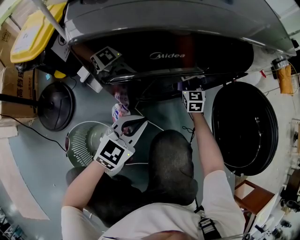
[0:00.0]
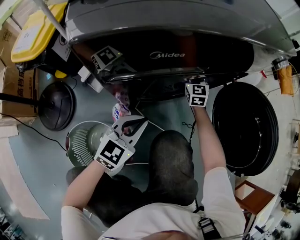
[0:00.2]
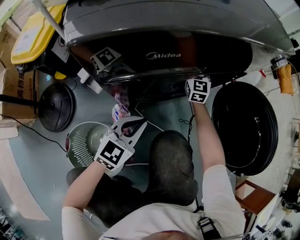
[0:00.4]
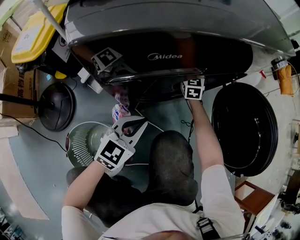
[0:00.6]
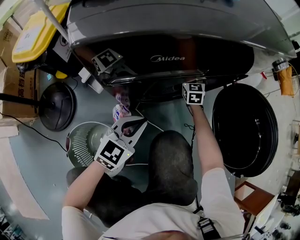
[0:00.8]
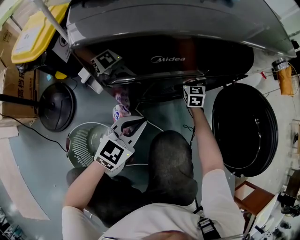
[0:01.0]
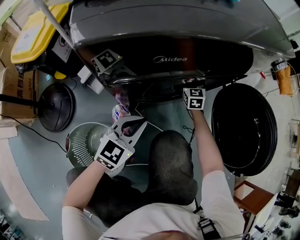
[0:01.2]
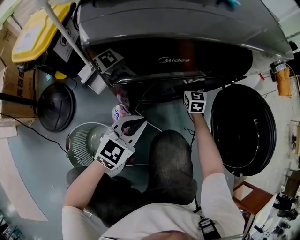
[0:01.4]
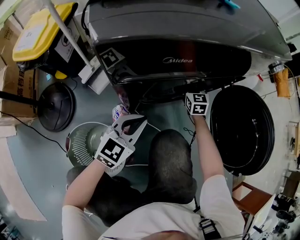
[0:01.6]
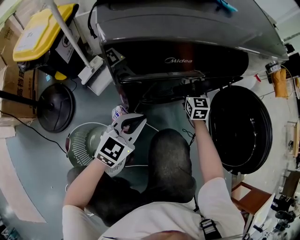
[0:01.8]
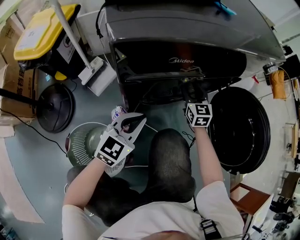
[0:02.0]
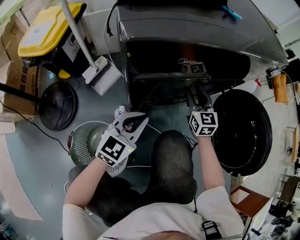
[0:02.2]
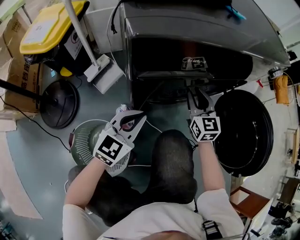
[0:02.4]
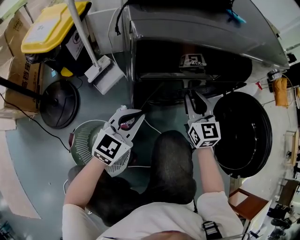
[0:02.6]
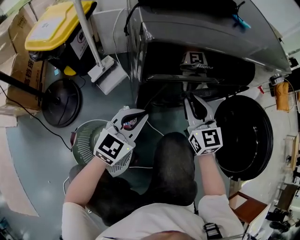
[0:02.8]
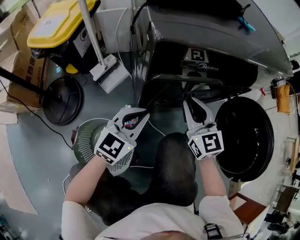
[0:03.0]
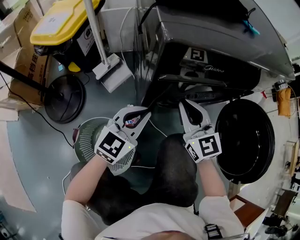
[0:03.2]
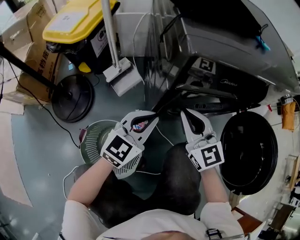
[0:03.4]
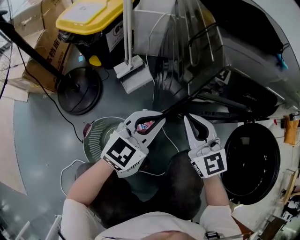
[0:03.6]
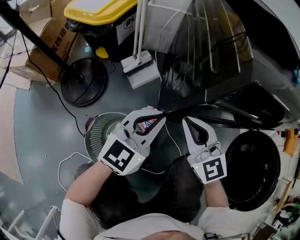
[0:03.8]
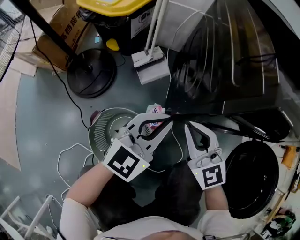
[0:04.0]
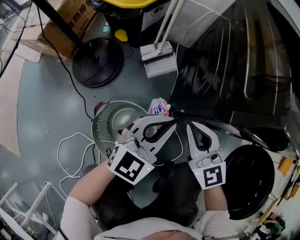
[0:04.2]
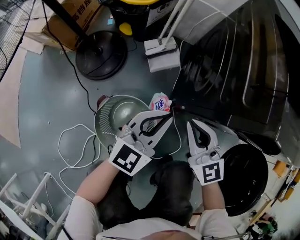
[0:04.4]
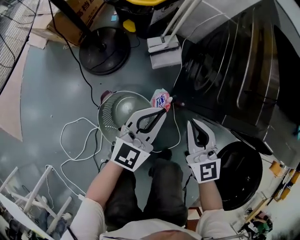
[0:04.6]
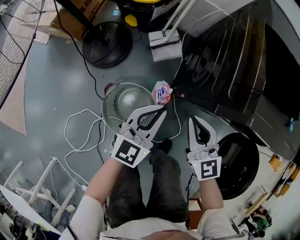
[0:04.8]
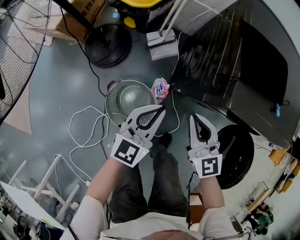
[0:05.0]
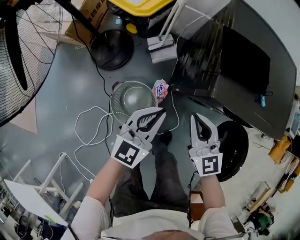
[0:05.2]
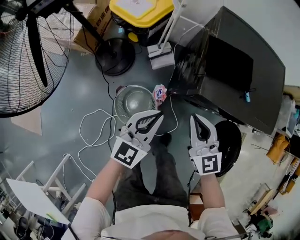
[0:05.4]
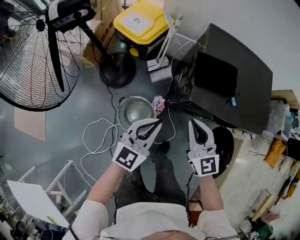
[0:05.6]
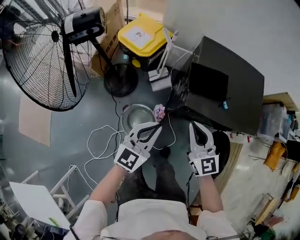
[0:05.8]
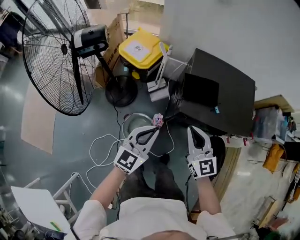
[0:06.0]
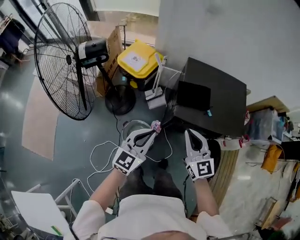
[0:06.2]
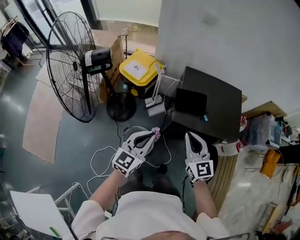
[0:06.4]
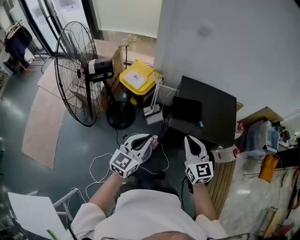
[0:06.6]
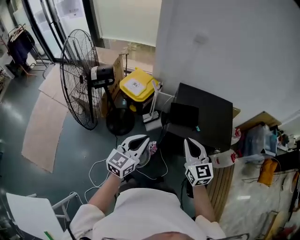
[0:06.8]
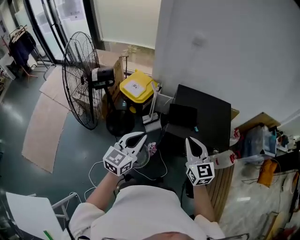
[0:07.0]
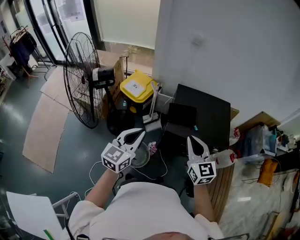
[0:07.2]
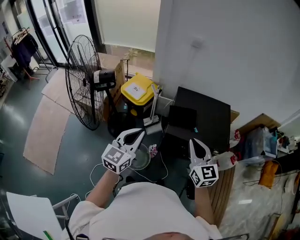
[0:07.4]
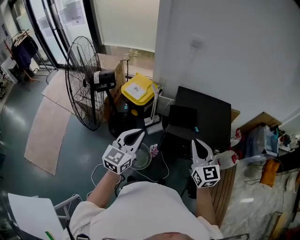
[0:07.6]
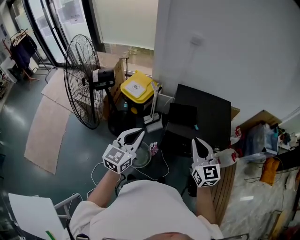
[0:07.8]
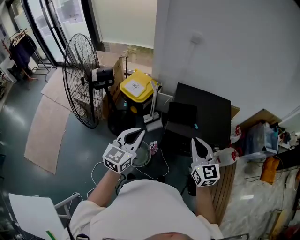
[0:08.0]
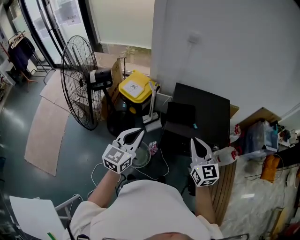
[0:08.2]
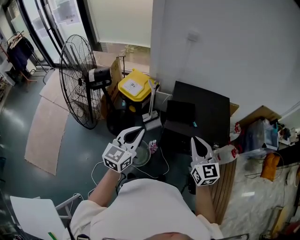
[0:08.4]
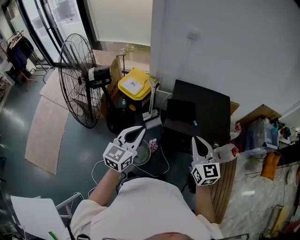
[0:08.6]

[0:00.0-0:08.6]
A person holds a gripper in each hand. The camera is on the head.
0:00.0 to 0:01.4: The right gripper goes upward and returns, roughly 10 cm each way, and opens its fingers.
0:01.4 to 0:02.8: The left gripper goes approximately 5 cm to the left; the right gripper travels upward, backward and to the left by some 25 cm, swivels roughly 20 degrees, and closes.
0:02.8 to 0:04.4: The right gripper changes place by roughly 25 cm, and rotates roughly 40 degrees, while the left gripper moves about 15 cm, and turns by about 30 degrees.
0:04.4 to 0:05.8: Both grippers move upward, approximately 40 cm.
0:05.8 to 0:07.2: Both grippers travel together upward, approximately 25 cm.
0:07.2 to 0:08.6: The grippers make only small movements.

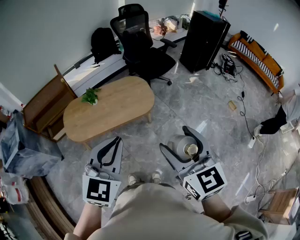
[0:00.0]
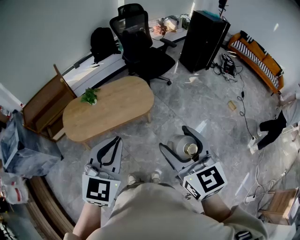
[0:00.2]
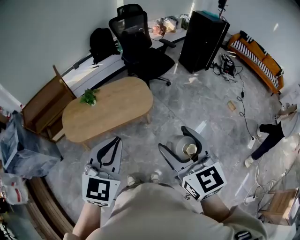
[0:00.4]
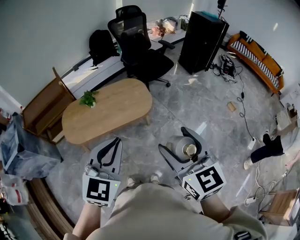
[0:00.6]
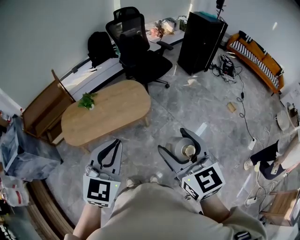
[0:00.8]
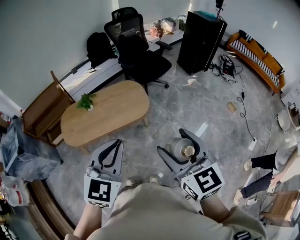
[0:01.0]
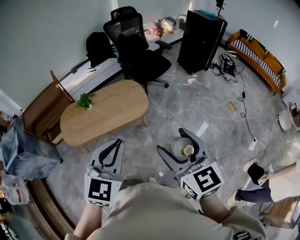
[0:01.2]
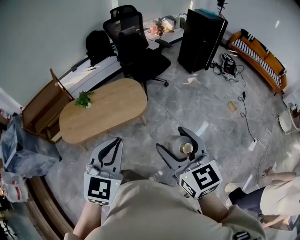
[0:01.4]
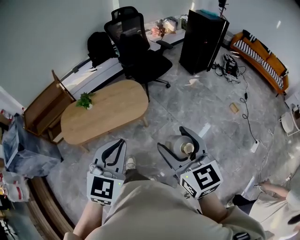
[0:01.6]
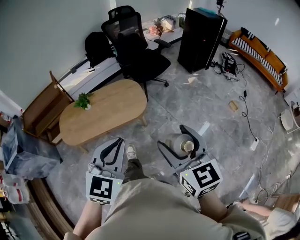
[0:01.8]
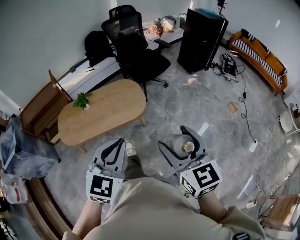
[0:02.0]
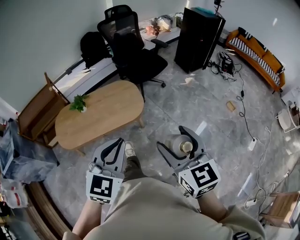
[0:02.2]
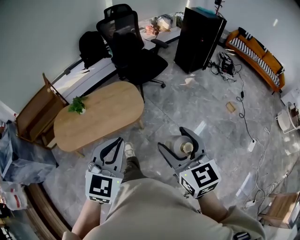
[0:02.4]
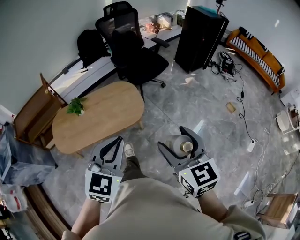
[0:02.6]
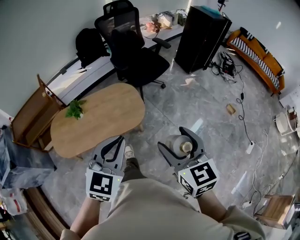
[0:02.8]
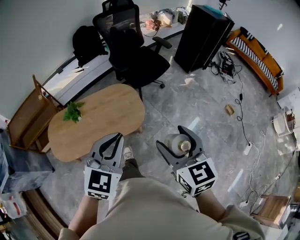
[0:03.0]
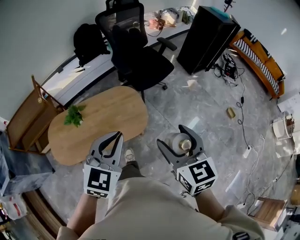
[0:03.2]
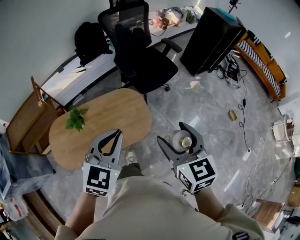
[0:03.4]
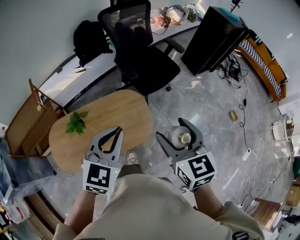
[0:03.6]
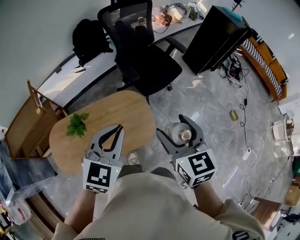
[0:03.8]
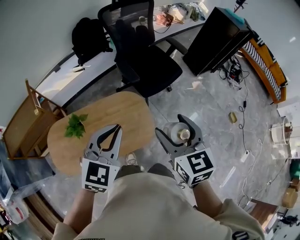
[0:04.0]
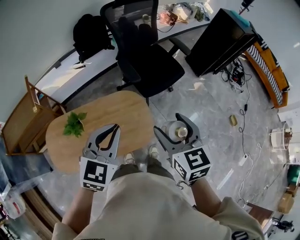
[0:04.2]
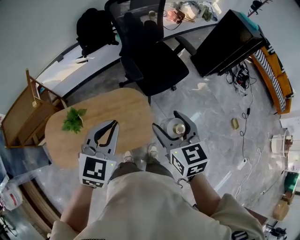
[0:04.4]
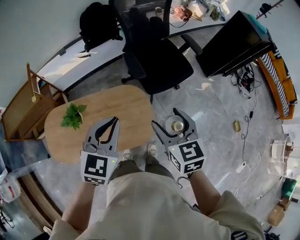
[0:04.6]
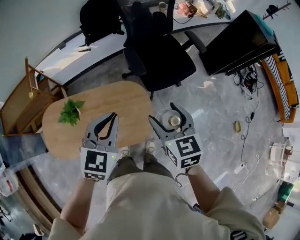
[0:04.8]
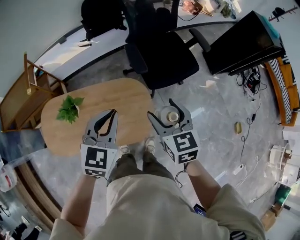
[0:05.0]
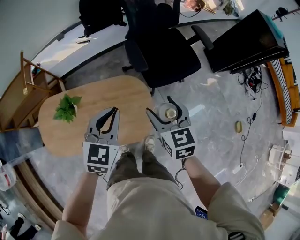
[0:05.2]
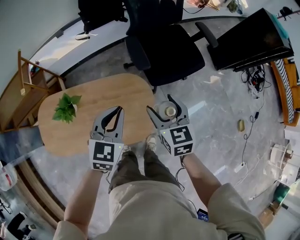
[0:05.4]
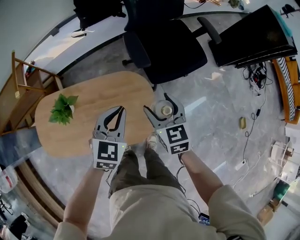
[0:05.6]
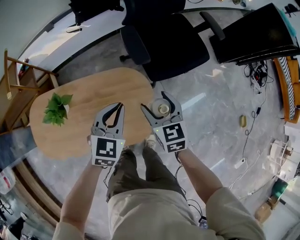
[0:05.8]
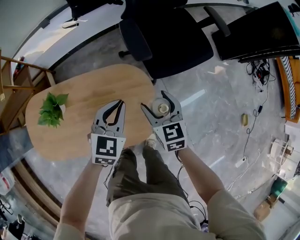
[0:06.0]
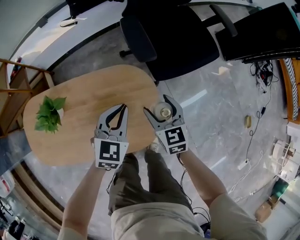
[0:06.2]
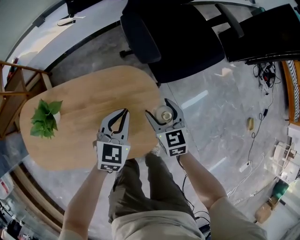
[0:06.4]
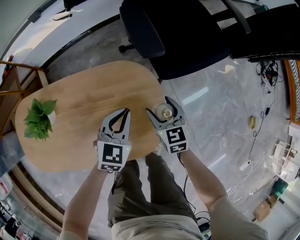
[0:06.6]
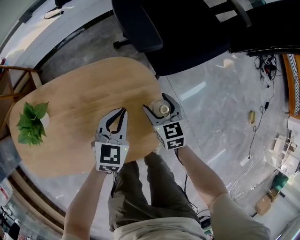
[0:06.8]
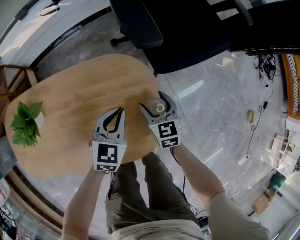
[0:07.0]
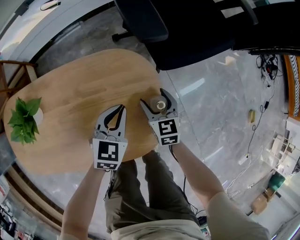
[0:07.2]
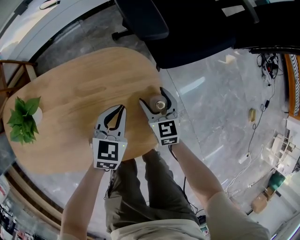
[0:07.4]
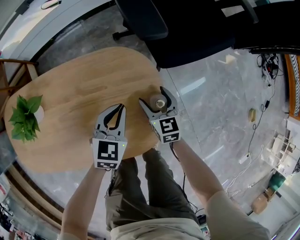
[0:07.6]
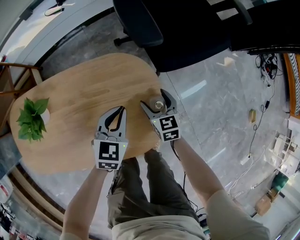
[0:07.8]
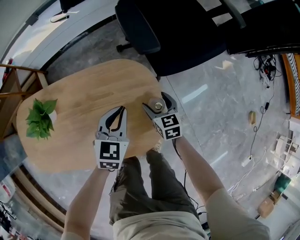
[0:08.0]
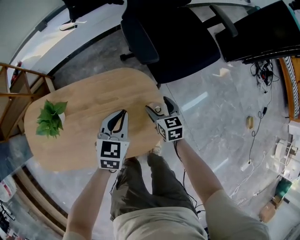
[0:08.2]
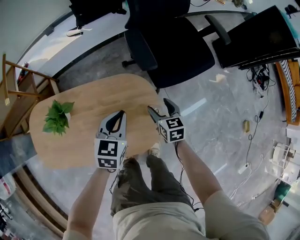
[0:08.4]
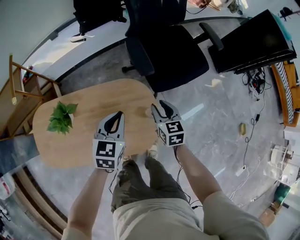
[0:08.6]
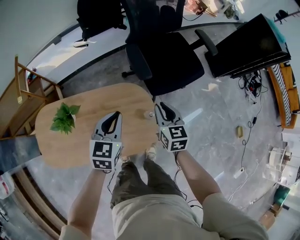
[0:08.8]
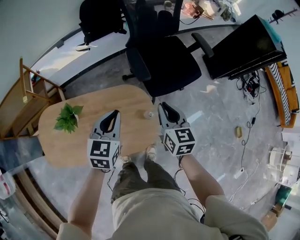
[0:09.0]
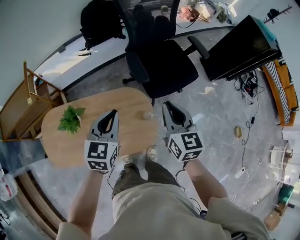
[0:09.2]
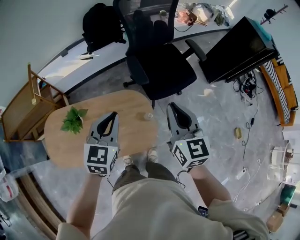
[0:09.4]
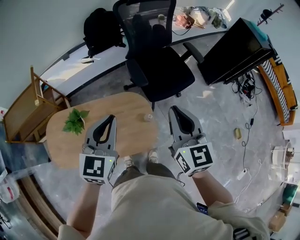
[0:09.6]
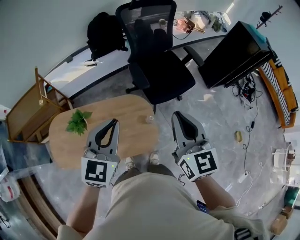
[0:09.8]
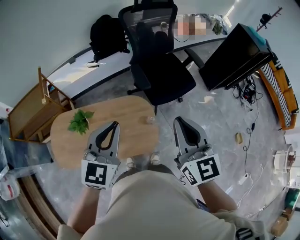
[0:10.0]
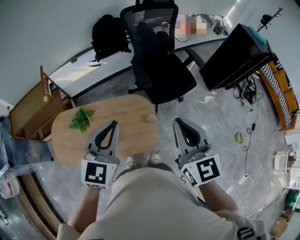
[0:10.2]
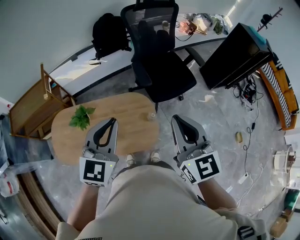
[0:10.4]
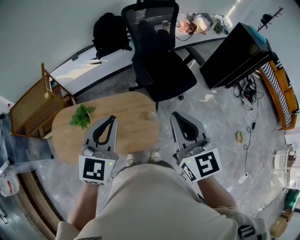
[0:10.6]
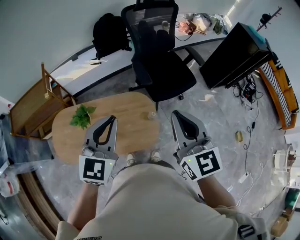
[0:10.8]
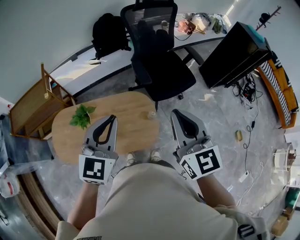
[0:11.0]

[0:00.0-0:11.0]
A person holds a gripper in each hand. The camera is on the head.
0:00.0 to 0:01.6: The two grippers go about 10 cm to the right.
0:01.6 to 0:03.2: Both grippers move forward, approximately 30 cm.
0:03.2 to 0:04.8: Both grippers travel together forward, approximately 30 cm.
0:04.8 to 0:06.2: The grippers both shift downward by about 35 cm.
0:06.2 to 0:07.8: Both grippers move downward, approximately 20 cm.
0:07.8 to 0:09.4: Both grippers travel together upward, roughly 50 cm. The right gripper changes its angle by about 30 degrees, and closes up.
0:09.4 to 0:11.0: The right gripper travels backward and upward by about 15 cm; the left gripper is displaced upward and backward by some 15 cm.

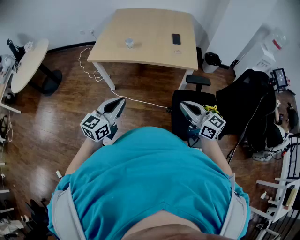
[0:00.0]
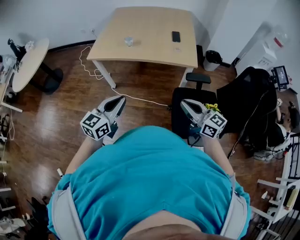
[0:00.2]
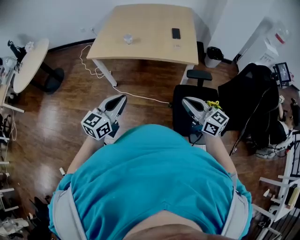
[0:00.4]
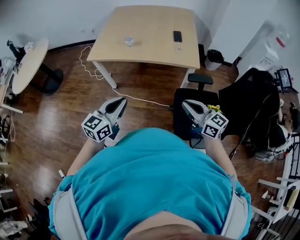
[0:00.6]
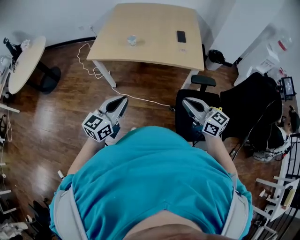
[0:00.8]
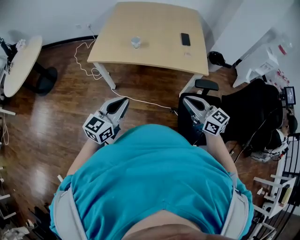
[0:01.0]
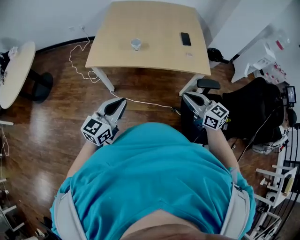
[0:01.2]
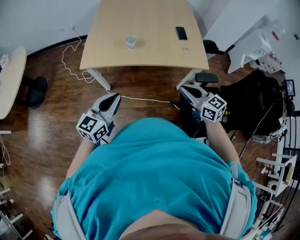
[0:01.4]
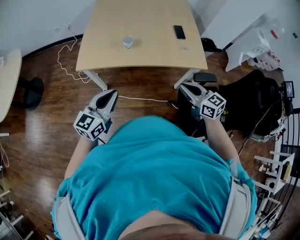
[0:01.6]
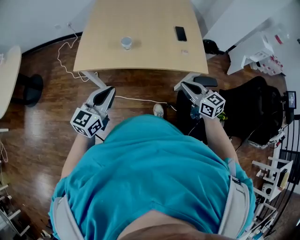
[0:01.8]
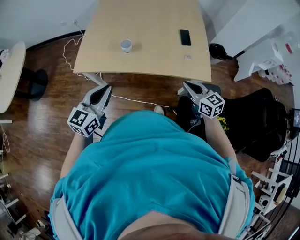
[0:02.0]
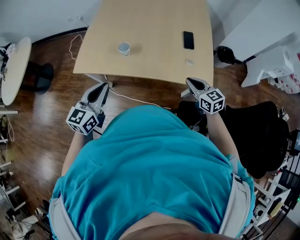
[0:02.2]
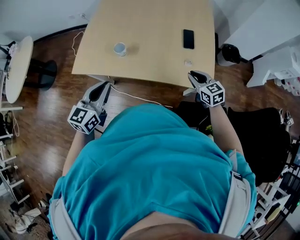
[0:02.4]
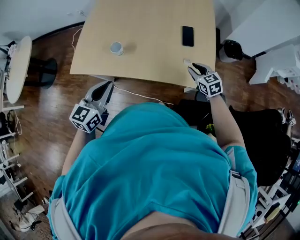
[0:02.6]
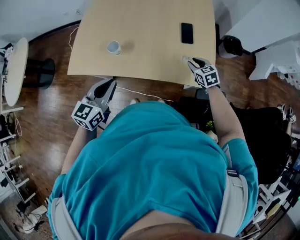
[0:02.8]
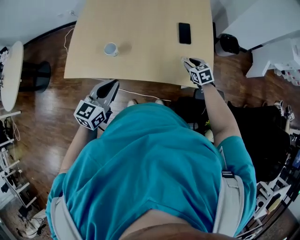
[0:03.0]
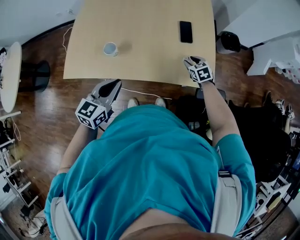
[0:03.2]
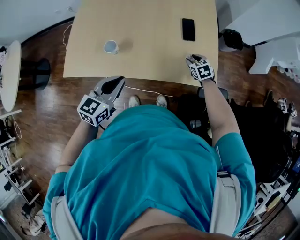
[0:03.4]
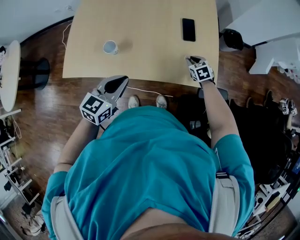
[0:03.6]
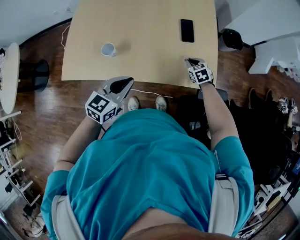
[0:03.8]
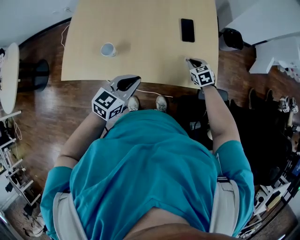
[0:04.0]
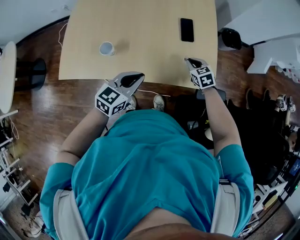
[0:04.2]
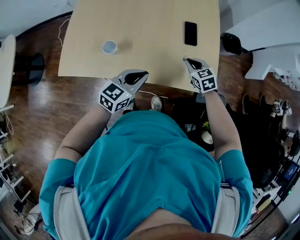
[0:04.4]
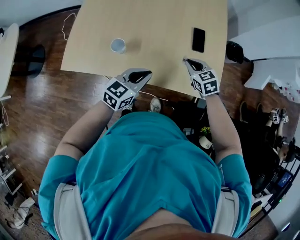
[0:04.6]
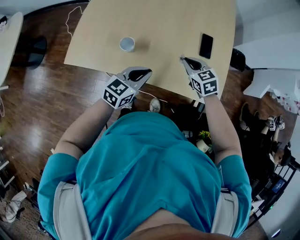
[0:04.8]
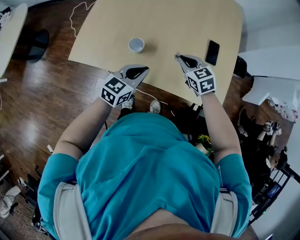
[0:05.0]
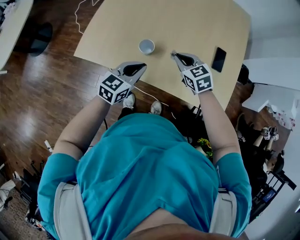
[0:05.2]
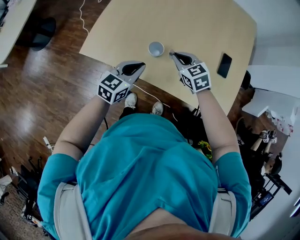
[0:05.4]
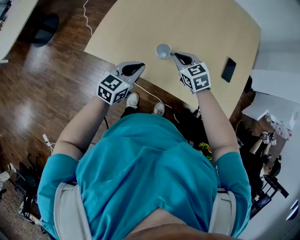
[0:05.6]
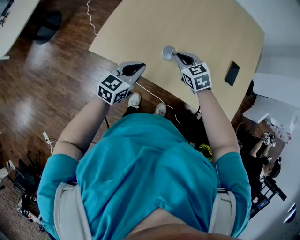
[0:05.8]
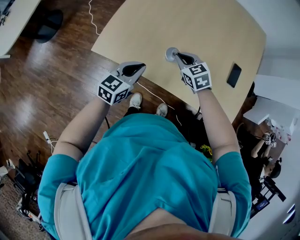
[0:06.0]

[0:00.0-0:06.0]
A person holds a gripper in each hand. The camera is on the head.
0:00.0 to 0:01.6: Both grippers move forward and to the left, roughly 25 cm.
0:01.6 to 0:03.0: The left gripper moves forward and to the right, some 25 cm, while the right gripper travels forward, downward and to the right by approximately 40 cm, tips its fingers downward by about 30 degrees, and opens up.
0:03.0 to 0:04.4: The left gripper moves to the right, forward and downward, roughly 15 cm, while the right gripper closes up.
0:04.4 to 0:06.0: The two grippers go approximately 30 cm to the left. The left gripper rotates approximately 20 degrees. Meanwhile the right gripper swivels approximately 20 degrees.
